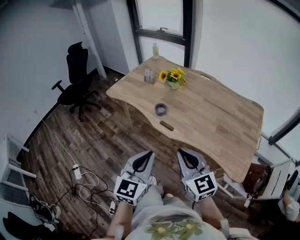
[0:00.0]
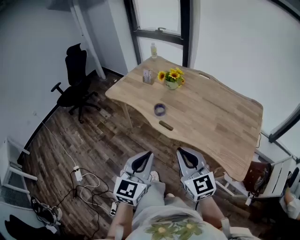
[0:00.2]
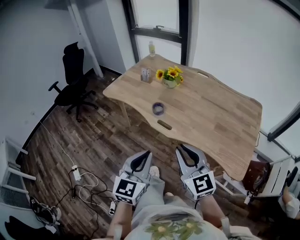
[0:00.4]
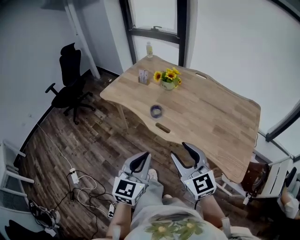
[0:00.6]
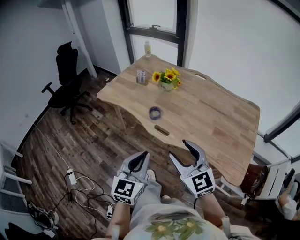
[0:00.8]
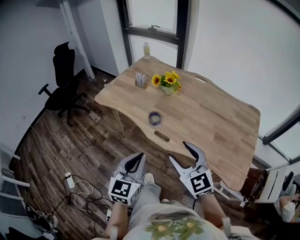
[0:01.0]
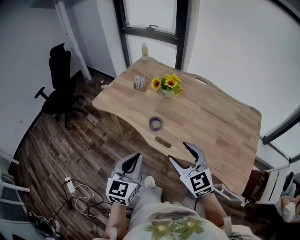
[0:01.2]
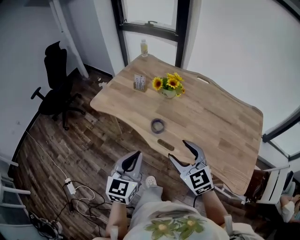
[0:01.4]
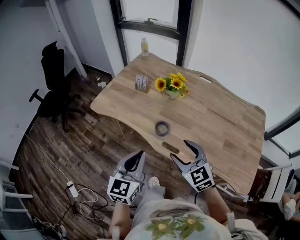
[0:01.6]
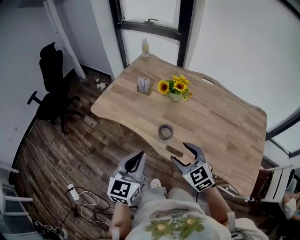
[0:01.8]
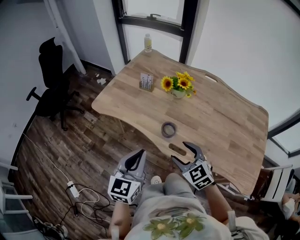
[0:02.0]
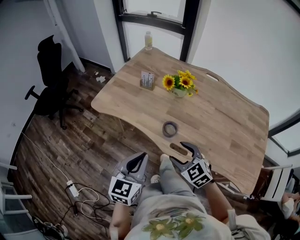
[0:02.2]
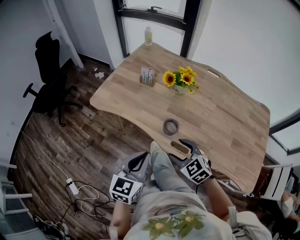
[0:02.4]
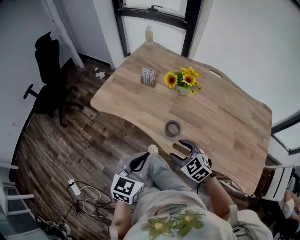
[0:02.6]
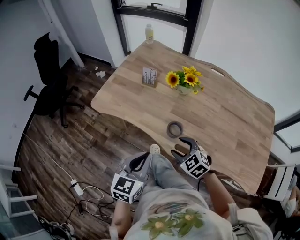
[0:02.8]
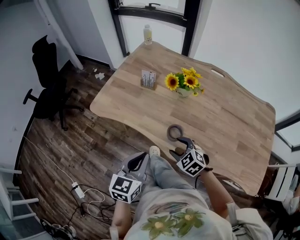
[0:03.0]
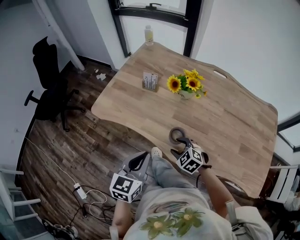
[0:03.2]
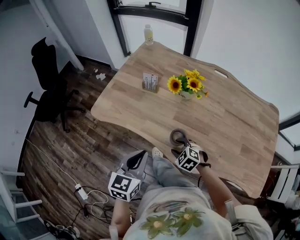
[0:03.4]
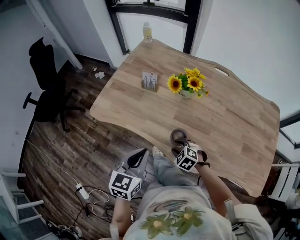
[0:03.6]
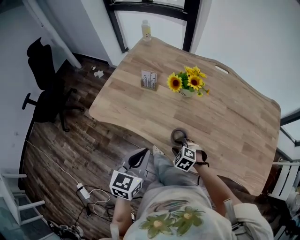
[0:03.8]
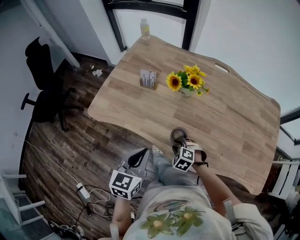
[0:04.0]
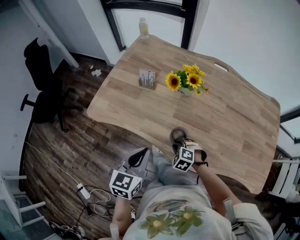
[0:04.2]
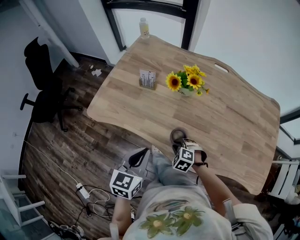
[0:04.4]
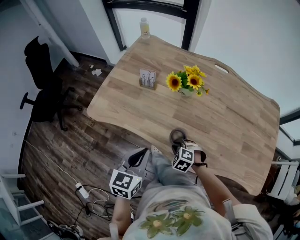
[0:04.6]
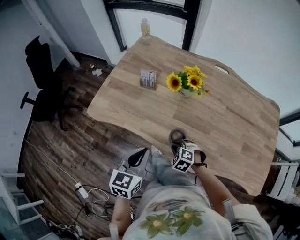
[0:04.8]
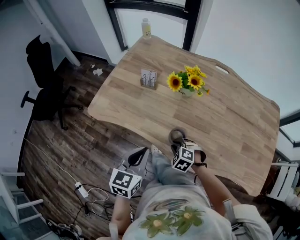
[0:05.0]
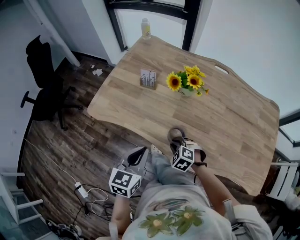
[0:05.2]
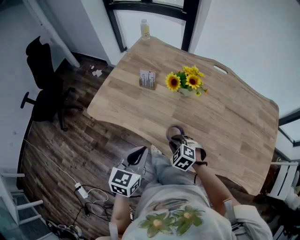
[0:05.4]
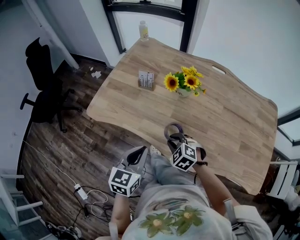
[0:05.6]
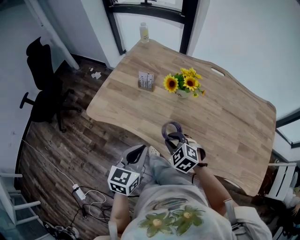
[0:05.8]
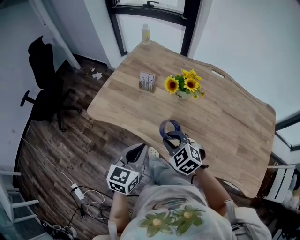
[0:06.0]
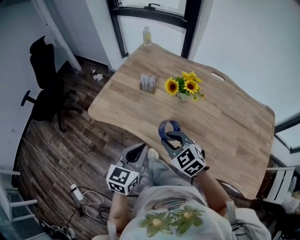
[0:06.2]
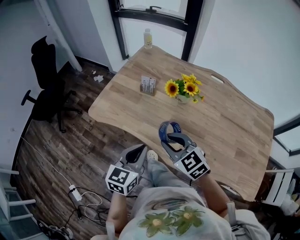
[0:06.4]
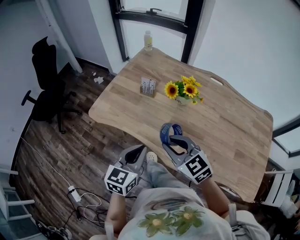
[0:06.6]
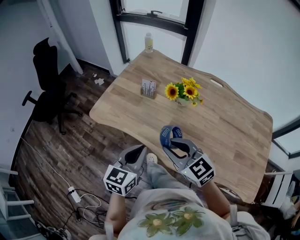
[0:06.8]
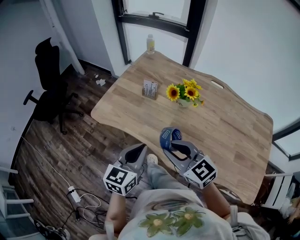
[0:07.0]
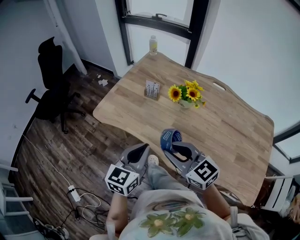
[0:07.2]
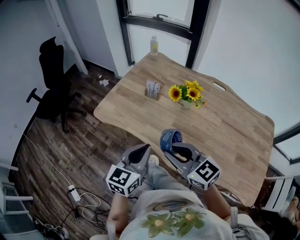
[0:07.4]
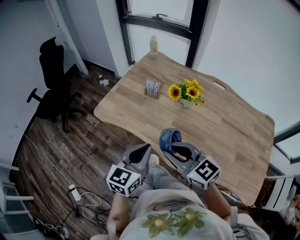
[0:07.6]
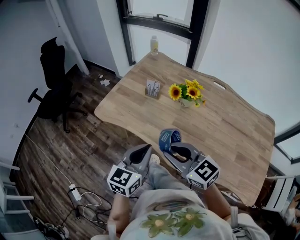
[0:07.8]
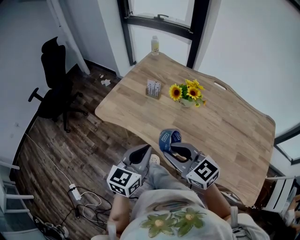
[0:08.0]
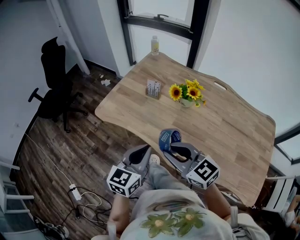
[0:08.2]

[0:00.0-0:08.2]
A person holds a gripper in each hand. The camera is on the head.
0.0 to 1.6 s: The two grippers go roughly 25 cm forward. The right gripper changes its angle by about 20 degrees, and opens its fingers.
1.6 to 3.2 s: The left gripper heads forward, downward and to the left, covering approximately 15 cm; the right gripper is displaced downward and forward by some 25 cm, and turns by about 30 degrees.
3.2 to 5.0 s: The right gripper travels downward by about 5 cm, and closes. The left gripper moves some 5 cm.
5.0 to 6.6 s: The right gripper moves upward, approximately 25 cm, and angles its fingers upward, by roughly 40 degrees.
6.6 to 8.2 s: The right gripper moves some 5 cm.

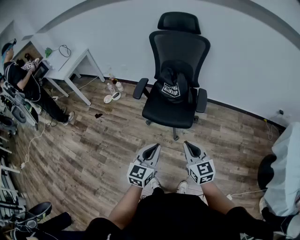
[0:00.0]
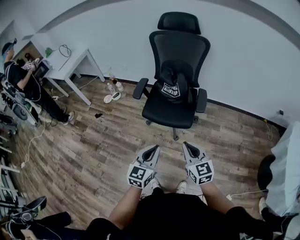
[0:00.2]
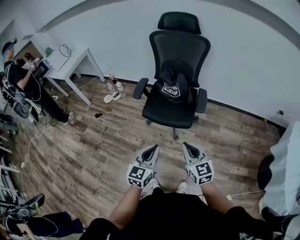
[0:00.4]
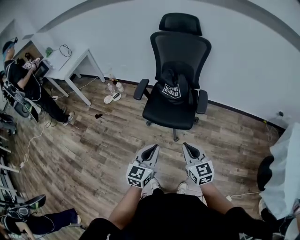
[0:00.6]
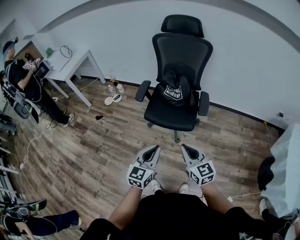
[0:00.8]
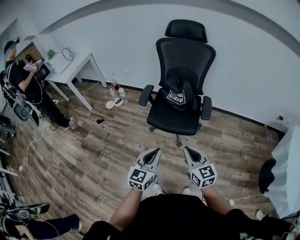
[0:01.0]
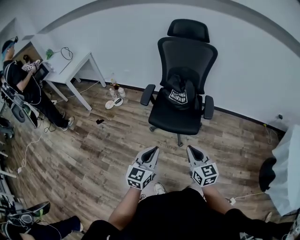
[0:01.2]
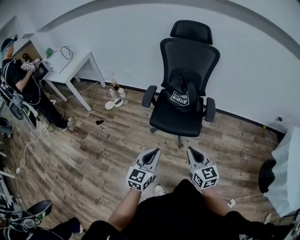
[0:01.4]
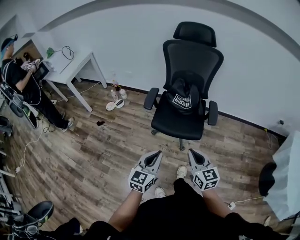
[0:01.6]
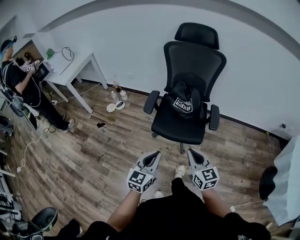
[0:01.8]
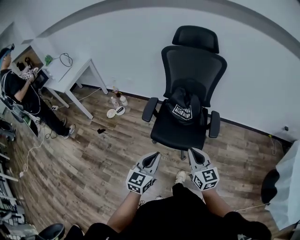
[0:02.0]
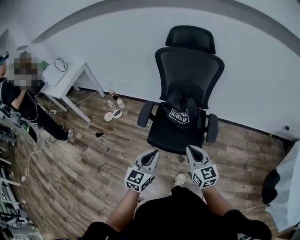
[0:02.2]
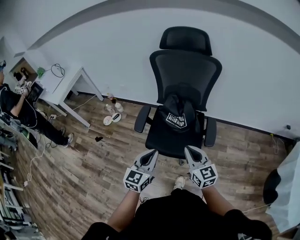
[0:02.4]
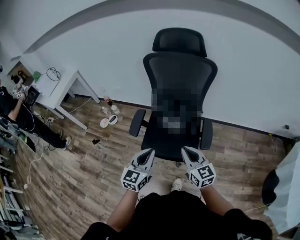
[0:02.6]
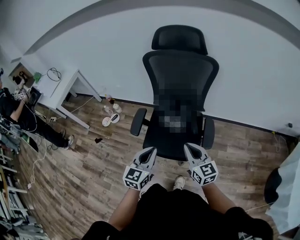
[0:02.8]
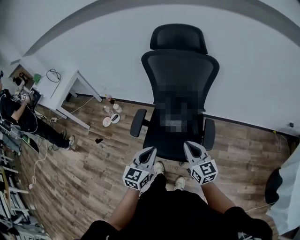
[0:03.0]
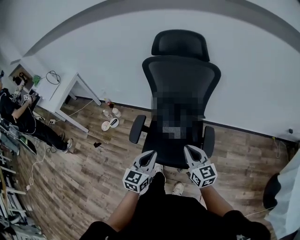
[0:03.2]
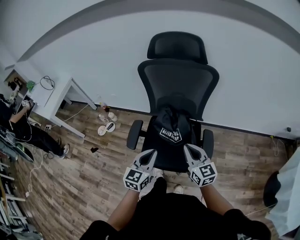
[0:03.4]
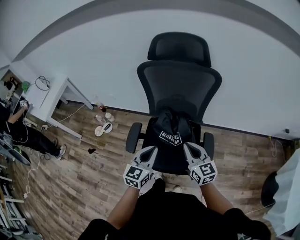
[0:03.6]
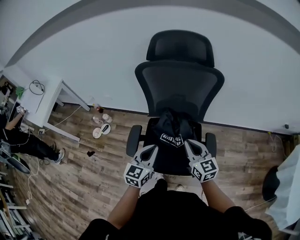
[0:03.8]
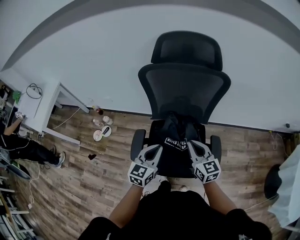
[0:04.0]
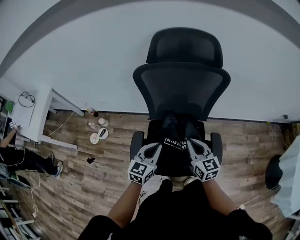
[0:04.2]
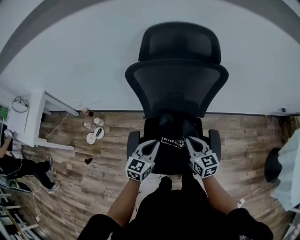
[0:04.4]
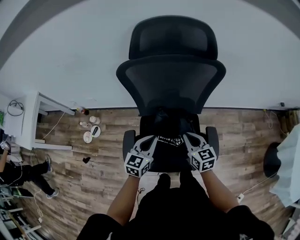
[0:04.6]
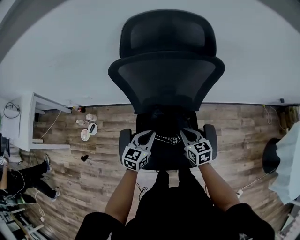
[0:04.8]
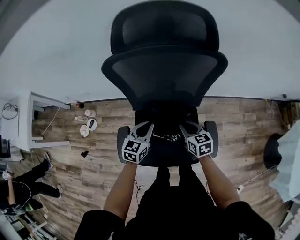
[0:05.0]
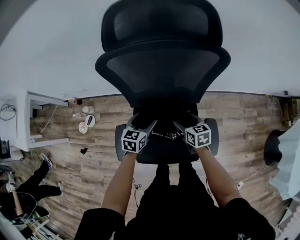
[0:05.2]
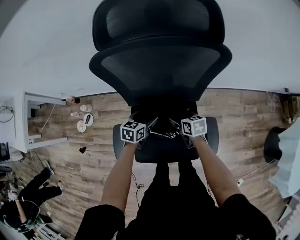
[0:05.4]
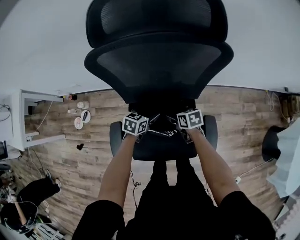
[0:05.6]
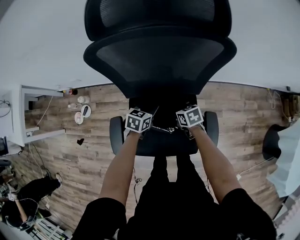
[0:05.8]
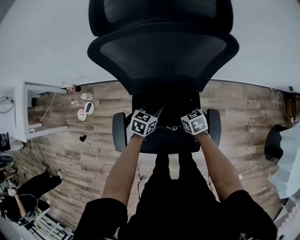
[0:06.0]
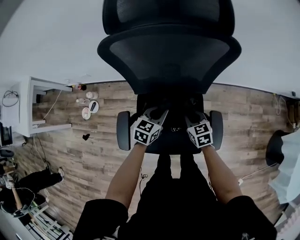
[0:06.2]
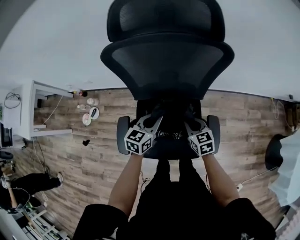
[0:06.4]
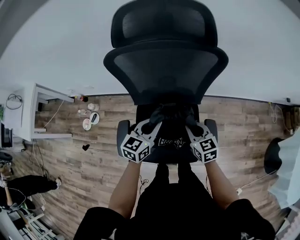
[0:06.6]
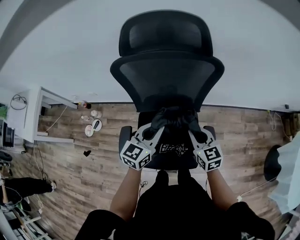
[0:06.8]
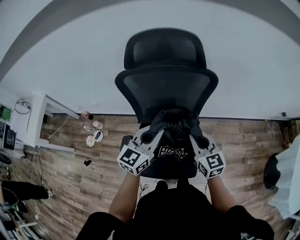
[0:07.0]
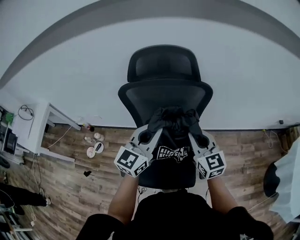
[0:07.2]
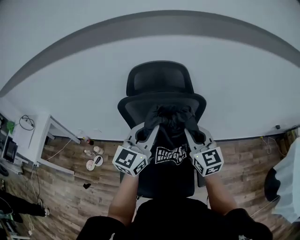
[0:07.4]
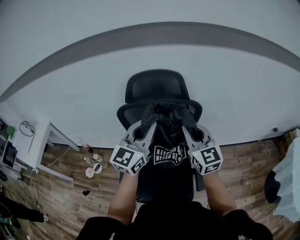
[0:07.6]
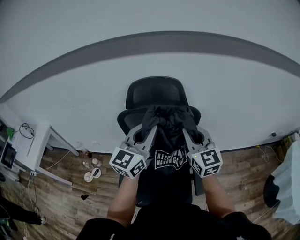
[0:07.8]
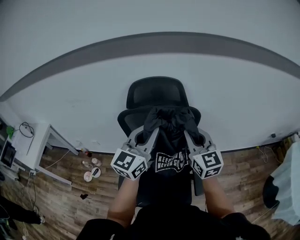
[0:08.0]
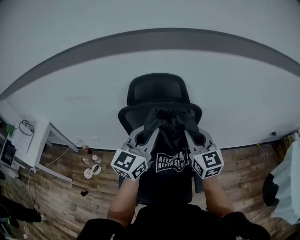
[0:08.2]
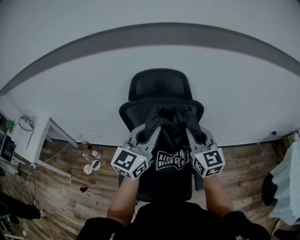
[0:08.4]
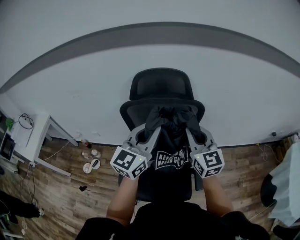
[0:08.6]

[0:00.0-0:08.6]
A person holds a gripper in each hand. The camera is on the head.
0.0 to 1.4 s: Both grippers travel together to the left, some 10 cm.
1.4 to 2.8 s: The grippers both shift forward by roughly 25 cm.
2.8 to 4.4 s: The two grippers go some 25 cm forward. The right gripper swivels approximately 20 degrees.
4.4 to 5.8 s: Both grippers travel together downward and forward, approximately 25 cm. The left gripper swivels roughly 30 degrees, and opens and closes again. The right gripper tilts its fingers approximately 30 degrees downward, and opens.
5.8 to 7.2 s: The two grippers go approximately 40 cm upward. The right gripper tips its fingers upward by roughly 40 degrees, and closes up. The left gripper tips its fingers upward by some 40 degrees.
7.2 to 8.6 s: Both grippers move upward, some 10 cm.

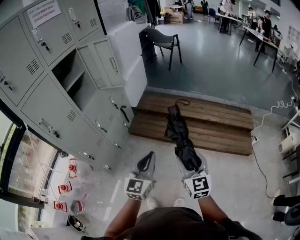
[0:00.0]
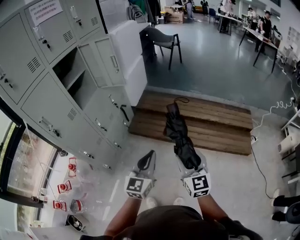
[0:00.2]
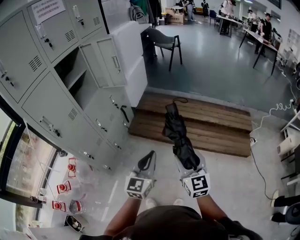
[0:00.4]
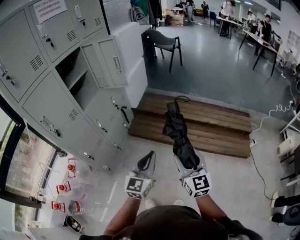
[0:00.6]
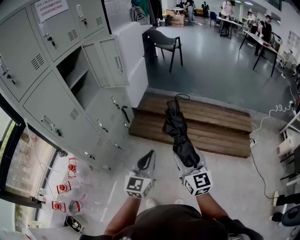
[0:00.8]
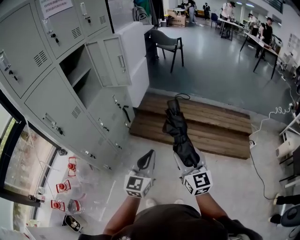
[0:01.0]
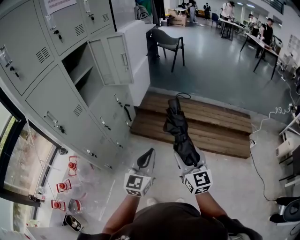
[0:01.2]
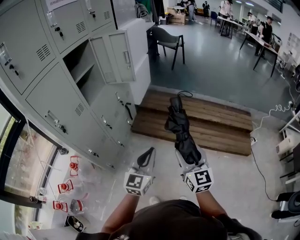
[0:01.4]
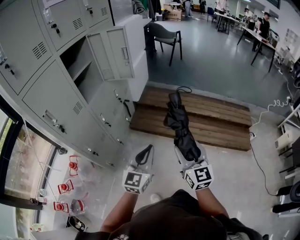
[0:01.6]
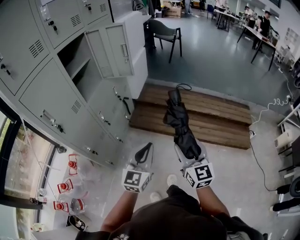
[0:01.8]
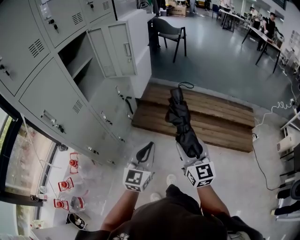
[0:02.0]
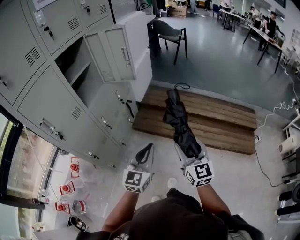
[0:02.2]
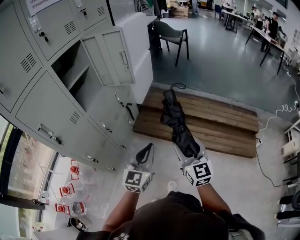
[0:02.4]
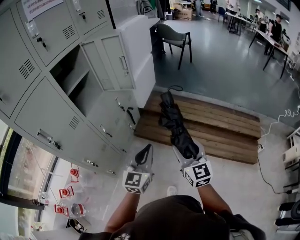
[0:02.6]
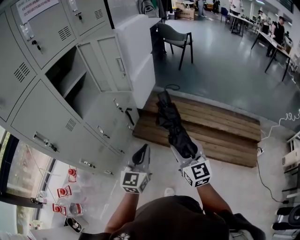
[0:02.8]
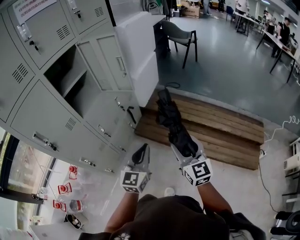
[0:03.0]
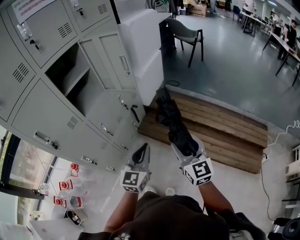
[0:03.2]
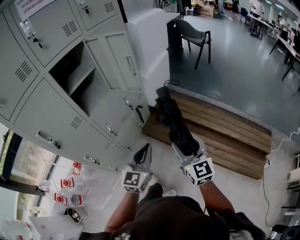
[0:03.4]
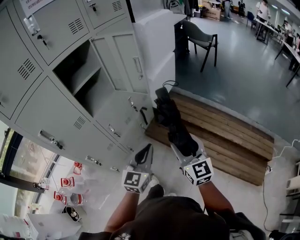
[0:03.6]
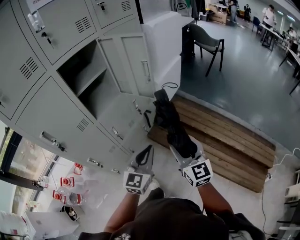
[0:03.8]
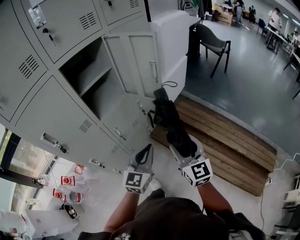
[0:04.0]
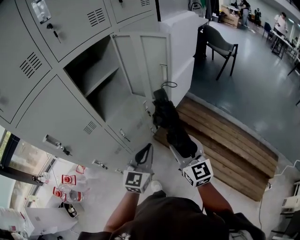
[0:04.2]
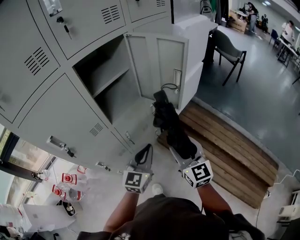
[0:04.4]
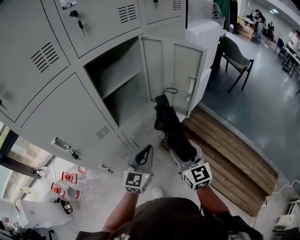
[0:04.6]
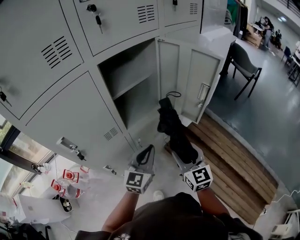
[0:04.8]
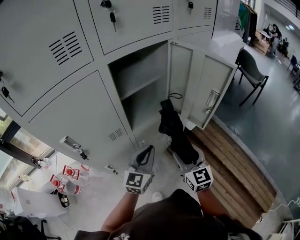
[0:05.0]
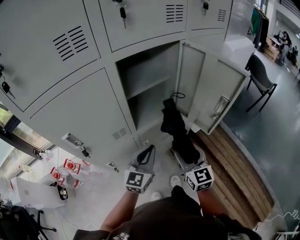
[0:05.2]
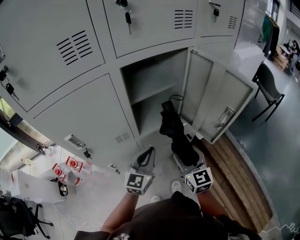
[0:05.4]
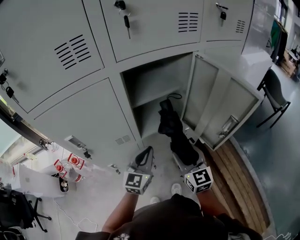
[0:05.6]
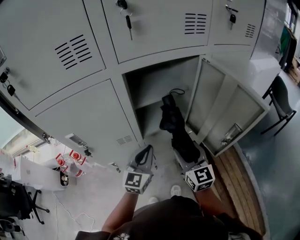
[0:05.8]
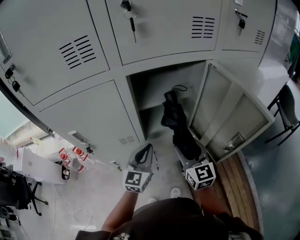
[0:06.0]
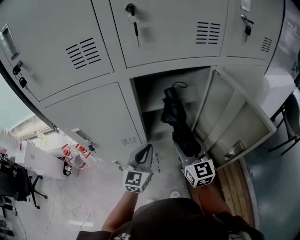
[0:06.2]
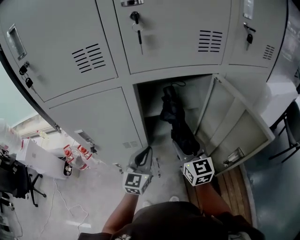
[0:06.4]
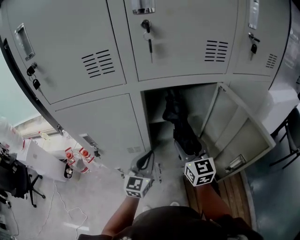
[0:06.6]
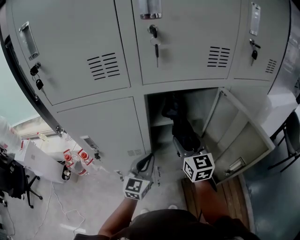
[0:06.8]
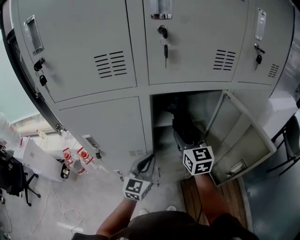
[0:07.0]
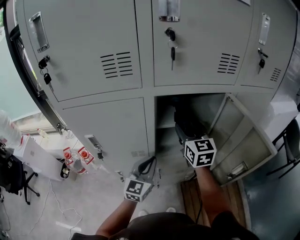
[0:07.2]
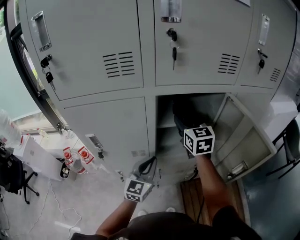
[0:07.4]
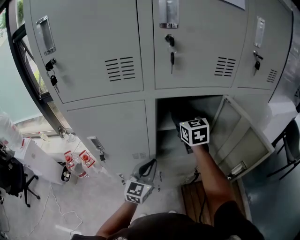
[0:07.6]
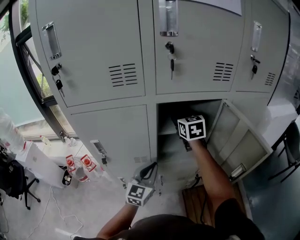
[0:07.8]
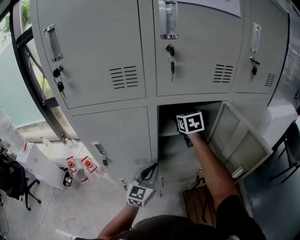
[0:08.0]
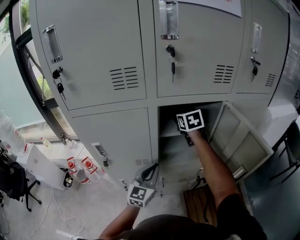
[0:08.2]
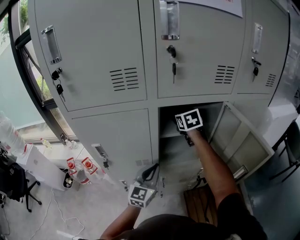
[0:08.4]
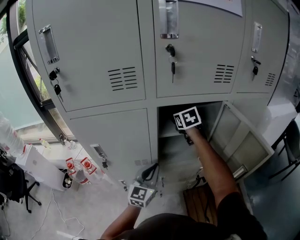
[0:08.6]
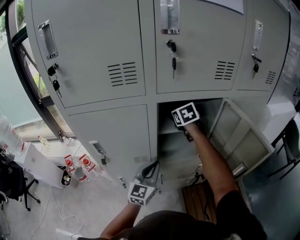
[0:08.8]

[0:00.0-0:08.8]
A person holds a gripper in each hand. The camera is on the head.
0.0 to 1.4 s: The grippers both shift to the left by roughly 10 cm.
1.4 to 3.0 s: Both grippers move forward, roughly 20 cm.
3.0 to 4.4 s: Both grippers travel together forward and to the left, roughly 25 cm. The right gripper changes its angle by approximately 20 degrees.
4.4 to 5.8 s: The right gripper changes place by some 20 cm, and rotates roughly 20 degrees. The left gripper moves some 20 cm, and rotates approximately 30 degrees.
5.8 to 7.4 s: The right gripper moves forward and upward, about 25 cm.
7.4 to 8.8 s: The right gripper shifts about 10 cm forward, and rotates some 30 degrees.
